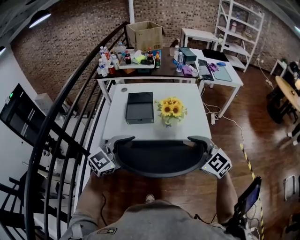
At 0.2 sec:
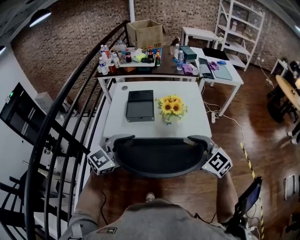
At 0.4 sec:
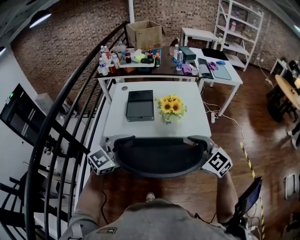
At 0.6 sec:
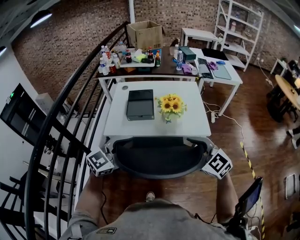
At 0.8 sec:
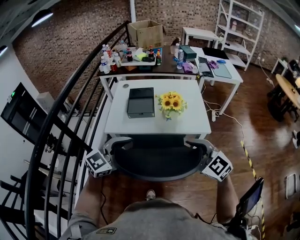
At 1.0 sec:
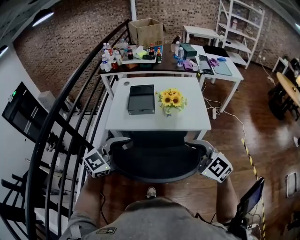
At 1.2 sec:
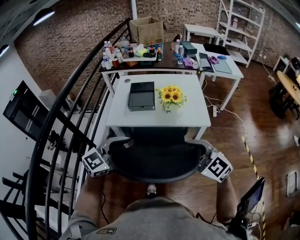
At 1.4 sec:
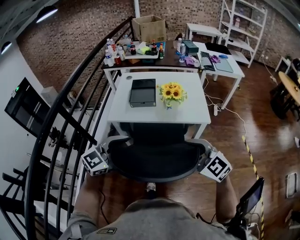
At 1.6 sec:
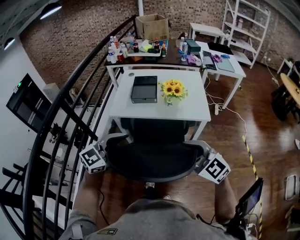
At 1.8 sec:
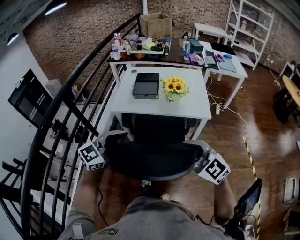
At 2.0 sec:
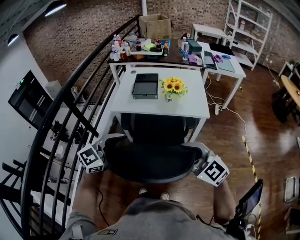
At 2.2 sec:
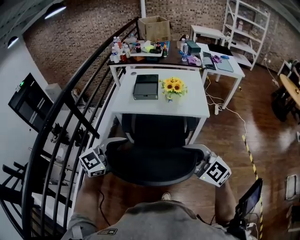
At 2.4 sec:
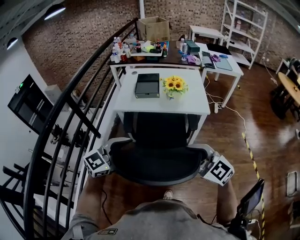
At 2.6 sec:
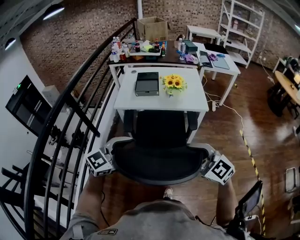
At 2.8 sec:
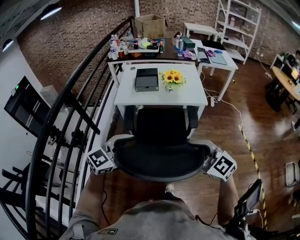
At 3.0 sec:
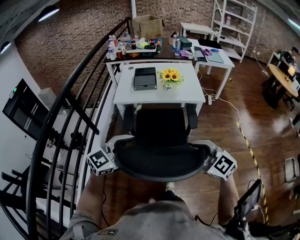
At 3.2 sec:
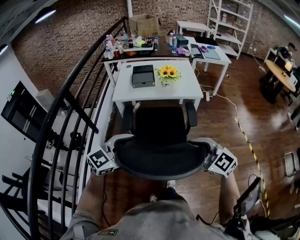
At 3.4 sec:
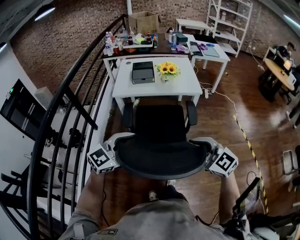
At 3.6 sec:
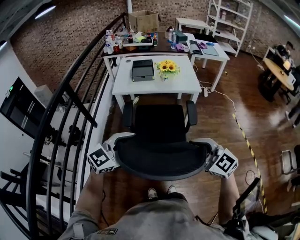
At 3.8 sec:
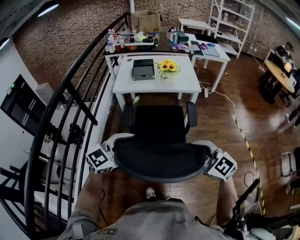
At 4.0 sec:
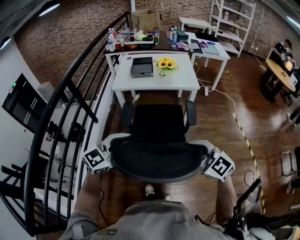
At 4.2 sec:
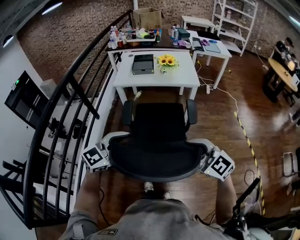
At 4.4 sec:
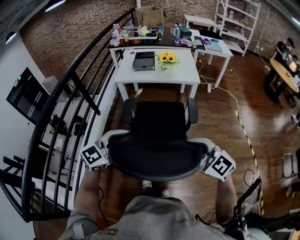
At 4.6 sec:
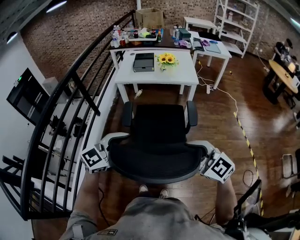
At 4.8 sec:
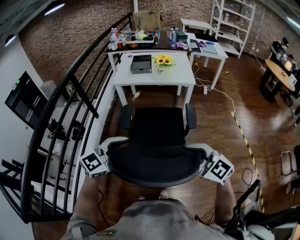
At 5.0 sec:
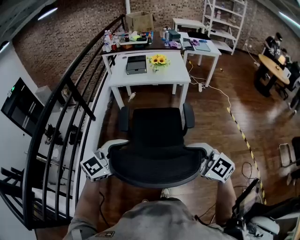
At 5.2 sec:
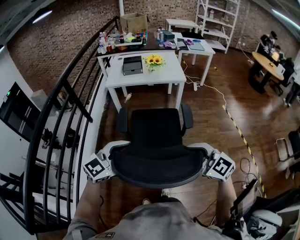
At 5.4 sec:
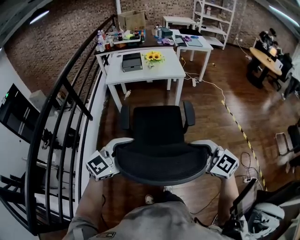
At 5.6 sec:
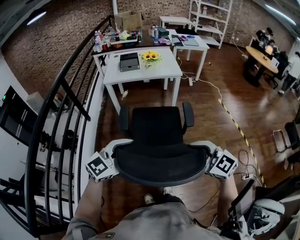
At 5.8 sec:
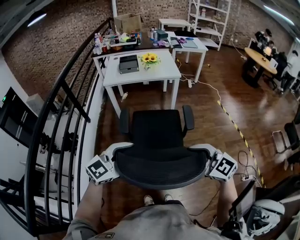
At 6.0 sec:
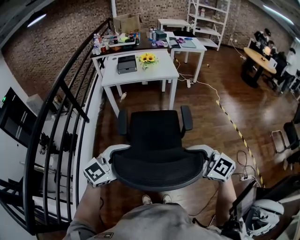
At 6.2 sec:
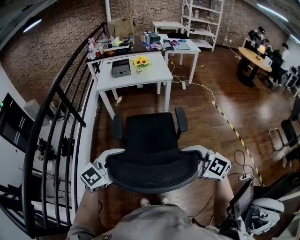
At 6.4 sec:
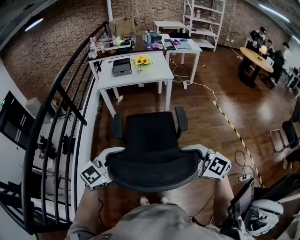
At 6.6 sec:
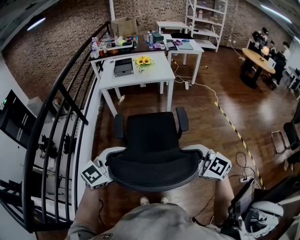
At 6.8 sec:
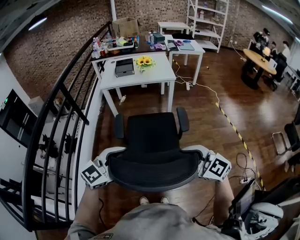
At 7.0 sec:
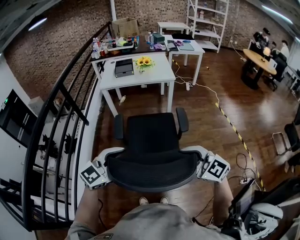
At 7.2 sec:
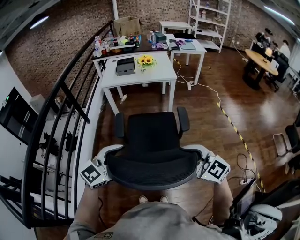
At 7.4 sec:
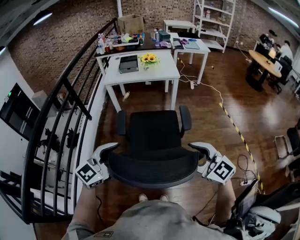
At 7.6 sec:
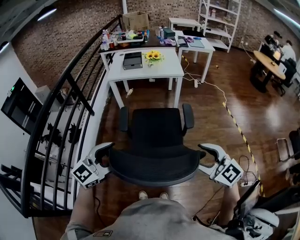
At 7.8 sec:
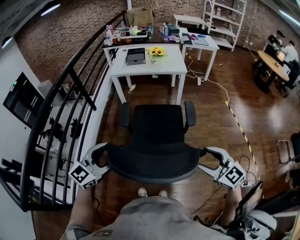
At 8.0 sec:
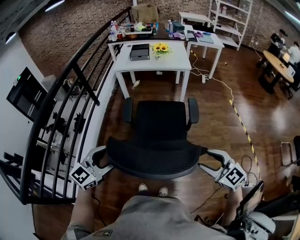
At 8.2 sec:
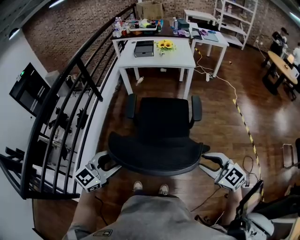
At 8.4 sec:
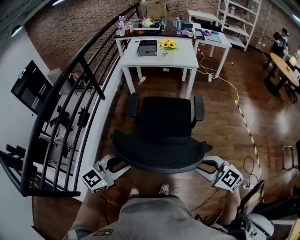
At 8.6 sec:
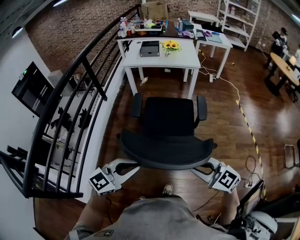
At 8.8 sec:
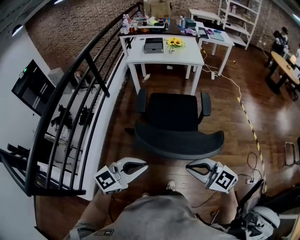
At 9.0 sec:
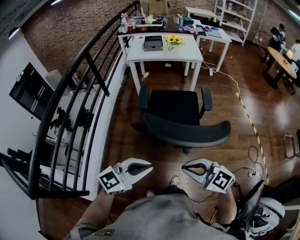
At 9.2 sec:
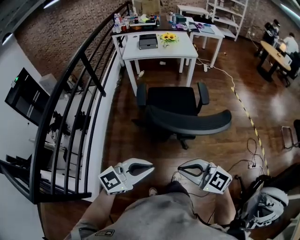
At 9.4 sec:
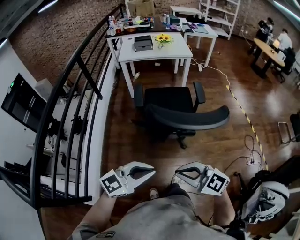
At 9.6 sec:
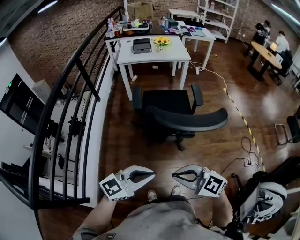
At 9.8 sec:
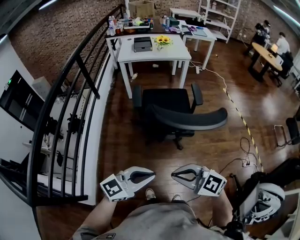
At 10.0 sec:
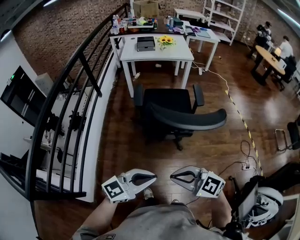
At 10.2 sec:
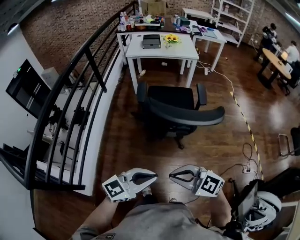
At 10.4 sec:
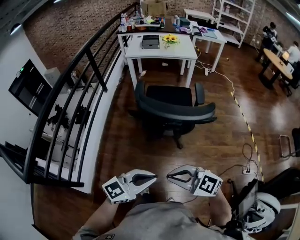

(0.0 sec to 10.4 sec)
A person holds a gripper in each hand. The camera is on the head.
0.0 sec - 1.4 sec: Both grippers move backward, roughly 15 cm.
1.4 sec - 3.0 sec: Both grippers travel together backward, roughly 20 cm.
3.0 sec - 4.4 sec: The grippers both shift backward by some 15 cm.
4.4 sec - 6.0 sec: The grippers both shift backward by approximately 15 cm.
6.0 sec - 7.4 sec: The right gripper opens.
7.4 sec - 9.0 sec: The left gripper moves roughly 20 cm, and closes up; the right gripper shifts by approximately 20 cm, and closes up.
9.0 sec - 10.4 sec: The right gripper shifts by roughly 10 cm, while the left gripper shifts by about 15 cm.

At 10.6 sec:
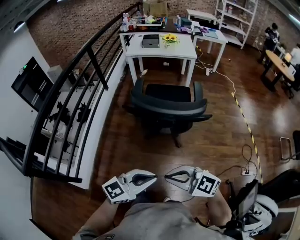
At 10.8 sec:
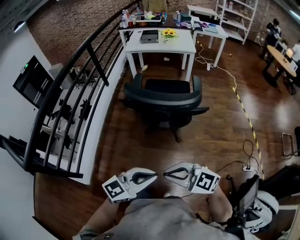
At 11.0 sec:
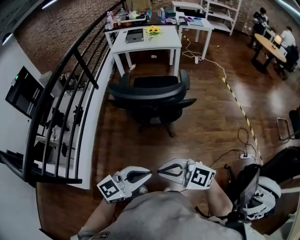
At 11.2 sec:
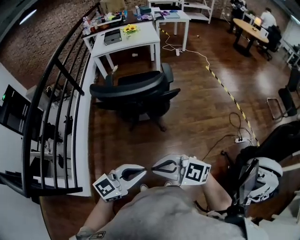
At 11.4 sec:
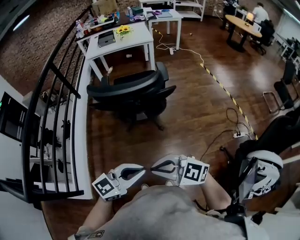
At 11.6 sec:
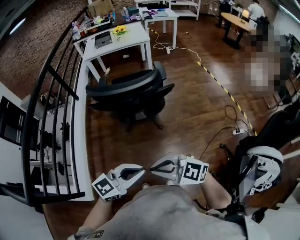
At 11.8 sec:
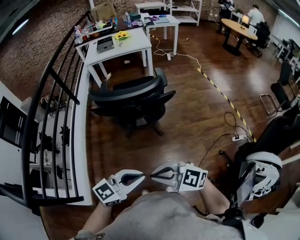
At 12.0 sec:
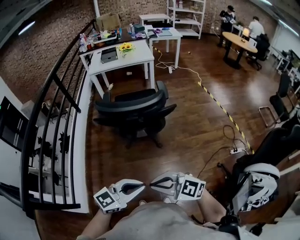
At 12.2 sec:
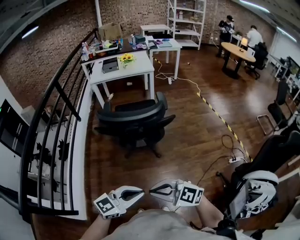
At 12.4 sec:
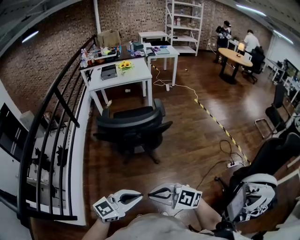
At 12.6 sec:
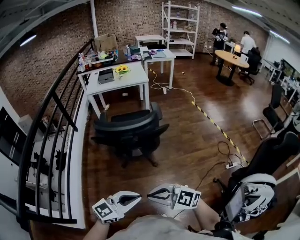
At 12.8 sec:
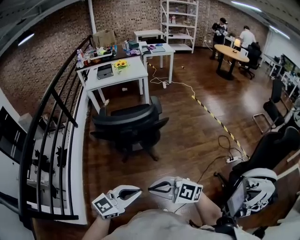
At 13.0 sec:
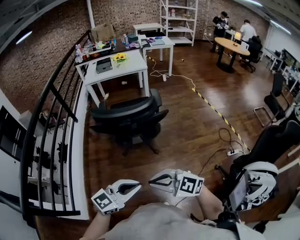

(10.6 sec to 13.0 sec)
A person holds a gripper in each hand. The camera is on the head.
10.6 sec - 11.8 sec: The right gripper ends up about 5 cm from where it was. The left gripper changes place by roughly 5 cm.
11.8 sec - 13.0 sec: The grippers stay close to where they were, moving slightly.

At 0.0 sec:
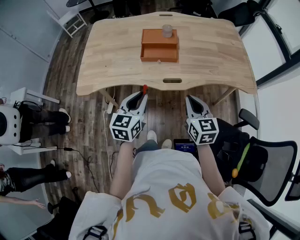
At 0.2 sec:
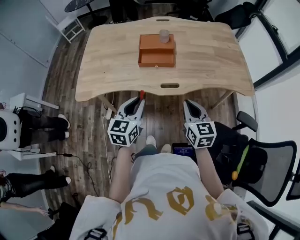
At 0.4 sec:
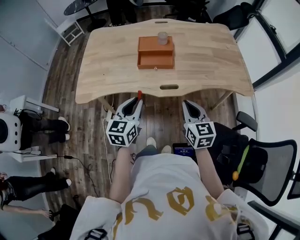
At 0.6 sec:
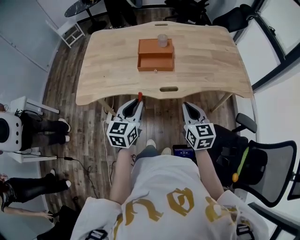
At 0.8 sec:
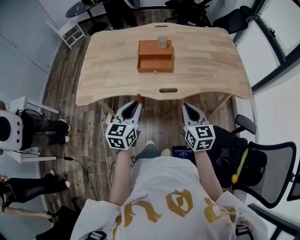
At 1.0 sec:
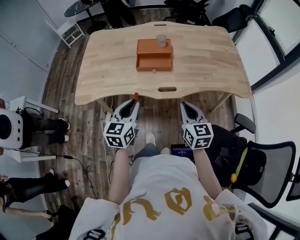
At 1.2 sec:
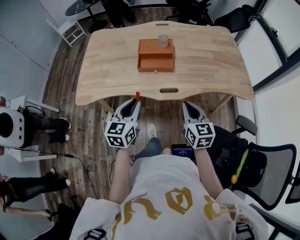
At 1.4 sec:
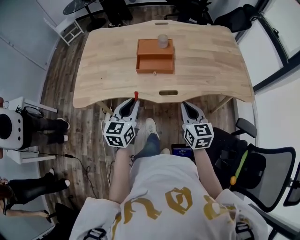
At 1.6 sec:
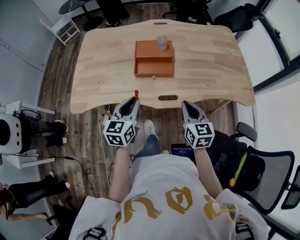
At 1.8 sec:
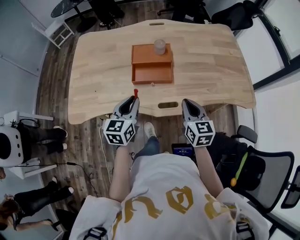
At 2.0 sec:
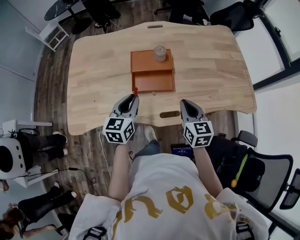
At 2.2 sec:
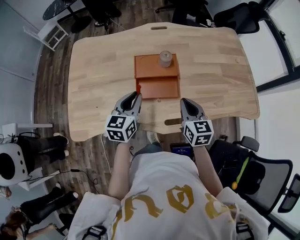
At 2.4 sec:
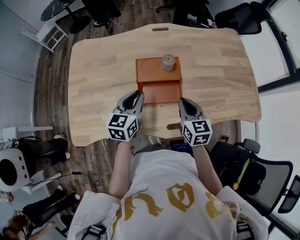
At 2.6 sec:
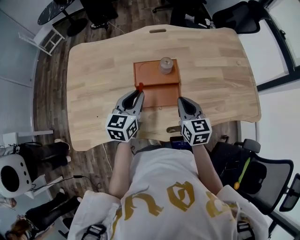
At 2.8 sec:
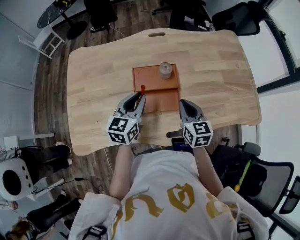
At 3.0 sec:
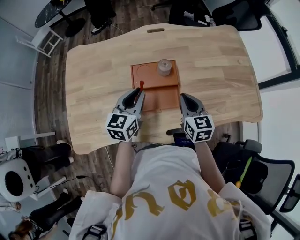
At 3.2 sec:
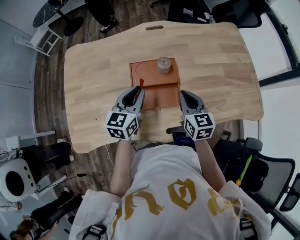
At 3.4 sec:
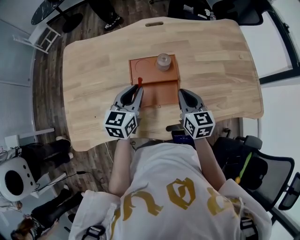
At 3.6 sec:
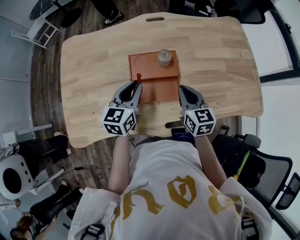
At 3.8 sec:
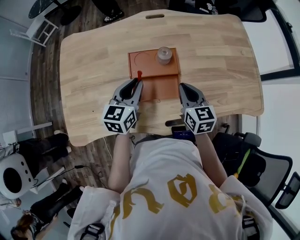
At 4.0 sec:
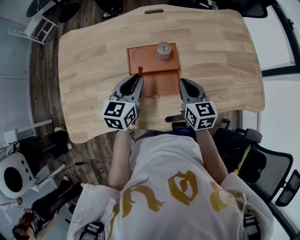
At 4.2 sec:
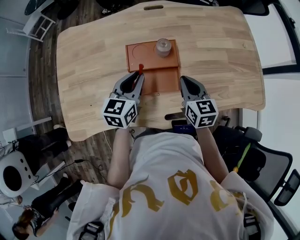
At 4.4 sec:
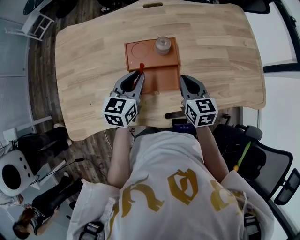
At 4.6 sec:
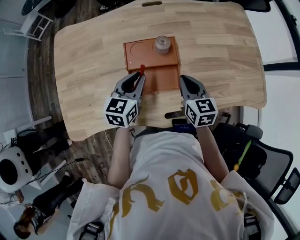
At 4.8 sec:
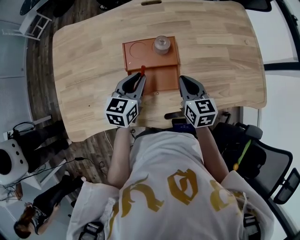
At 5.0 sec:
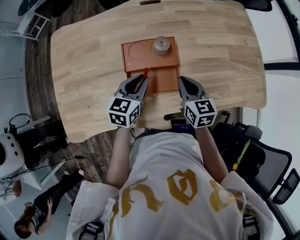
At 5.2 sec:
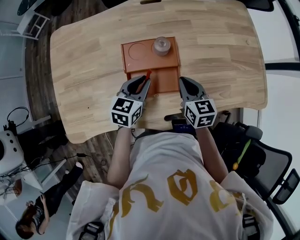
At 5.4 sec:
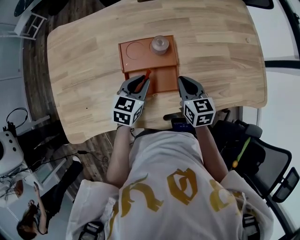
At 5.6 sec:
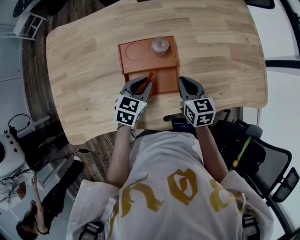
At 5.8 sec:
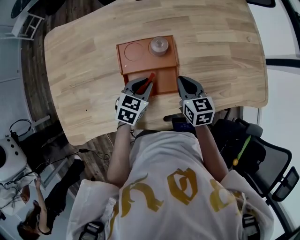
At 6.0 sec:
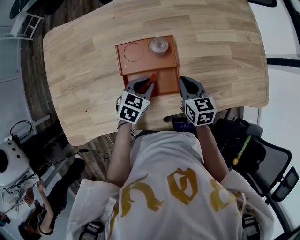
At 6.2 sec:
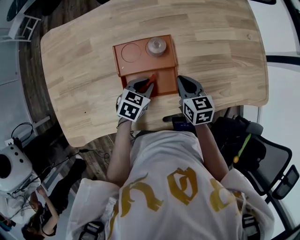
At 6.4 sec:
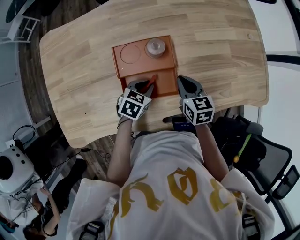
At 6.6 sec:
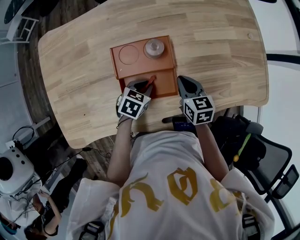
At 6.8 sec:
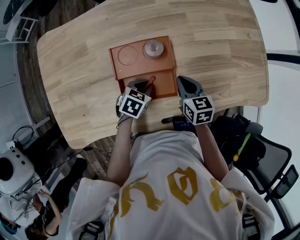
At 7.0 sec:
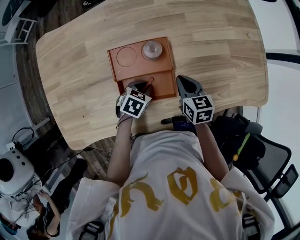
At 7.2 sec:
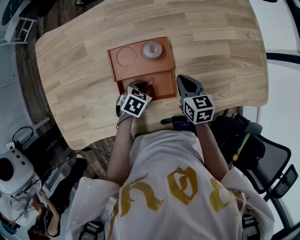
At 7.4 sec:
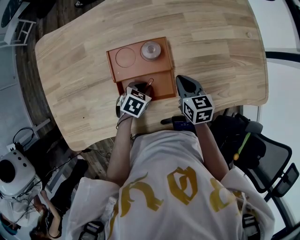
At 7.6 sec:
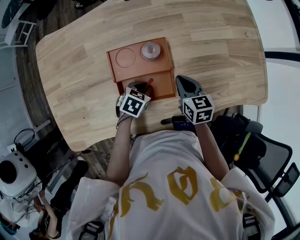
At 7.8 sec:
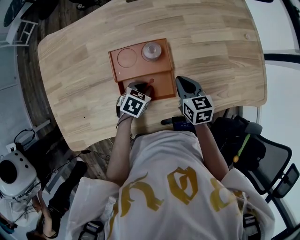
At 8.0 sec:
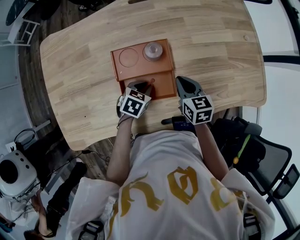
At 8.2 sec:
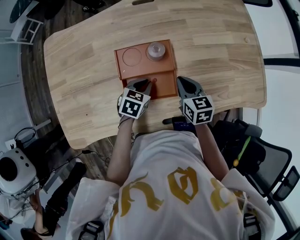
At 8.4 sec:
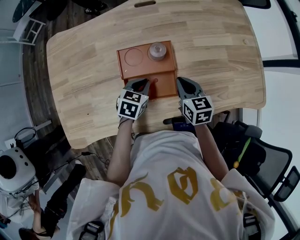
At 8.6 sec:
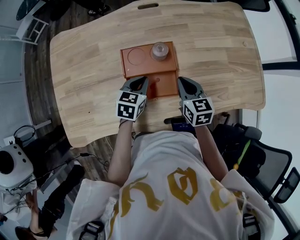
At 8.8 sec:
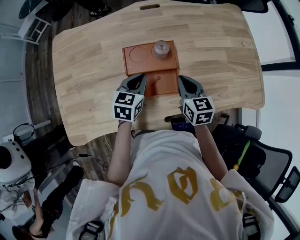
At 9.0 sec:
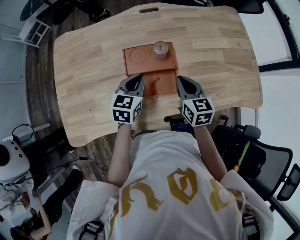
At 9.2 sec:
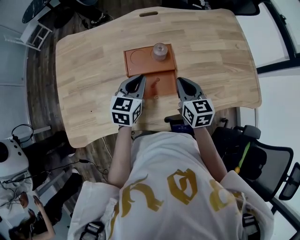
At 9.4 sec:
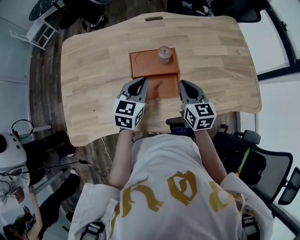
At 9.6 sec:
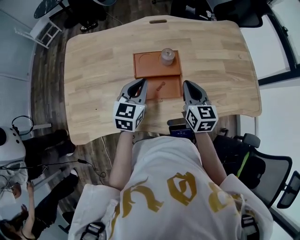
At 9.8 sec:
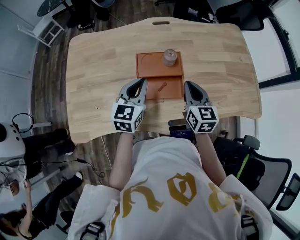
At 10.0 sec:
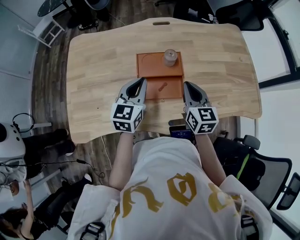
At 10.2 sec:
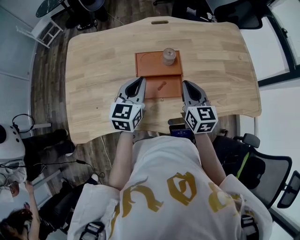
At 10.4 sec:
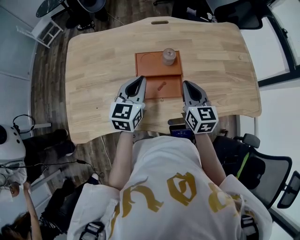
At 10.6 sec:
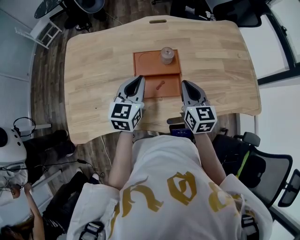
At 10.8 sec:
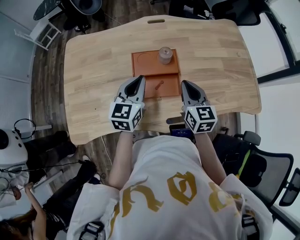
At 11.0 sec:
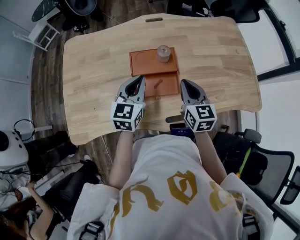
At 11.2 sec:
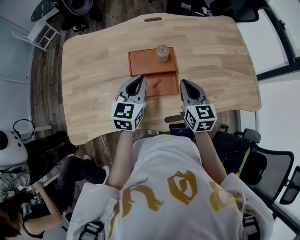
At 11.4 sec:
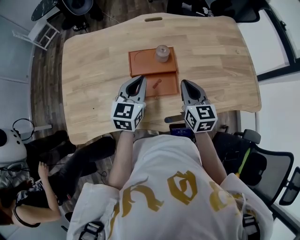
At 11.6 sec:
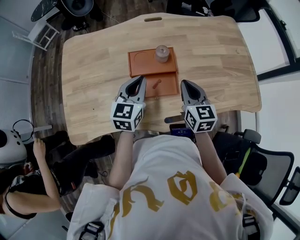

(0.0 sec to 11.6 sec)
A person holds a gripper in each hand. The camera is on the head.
0.0 sec - 1.4 sec: The grippers stay close to where they were, moving slightly.
1.4 sec - 2.8 sec: The grippers both shift forward by about 30 cm.
2.8 sec - 4.4 sec: The left gripper ends up approximately 5 cm from where it was.
4.4 sec - 5.8 sec: The left gripper goes approximately 10 cm downward, and rotates roughly 30 degrees. Meanwhile the right gripper is displaced downward by some 5 cm.
5.8 sec - 7.2 sec: The left gripper heads downward, covering approximately 10 cm, and changes its angle by about 20 degrees.
7.2 sec - 8.8 sec: The right gripper goes some 10 cm upward, while the left gripper is displaced upward by about 15 cm, and rotates about 30 degrees.
8.8 sec - 10.2 sec: The right gripper heads upward, covering approximately 10 cm. Meanwhile the left gripper travels upward and backward by roughly 10 cm, and changes its angle by roughly 20 degrees.
10.2 sec - 11.6 sec: The grippers move only a little.
